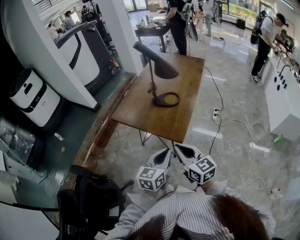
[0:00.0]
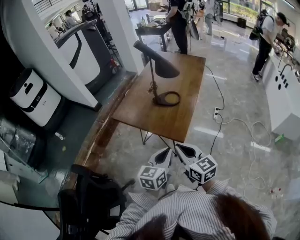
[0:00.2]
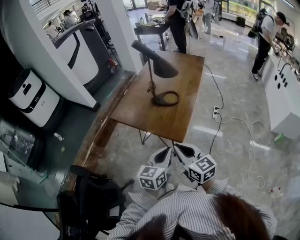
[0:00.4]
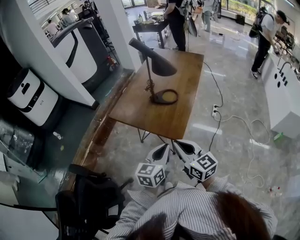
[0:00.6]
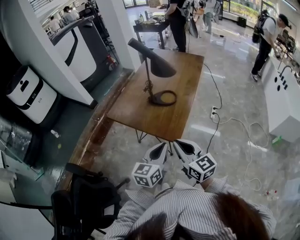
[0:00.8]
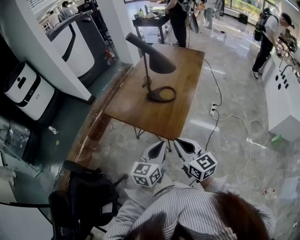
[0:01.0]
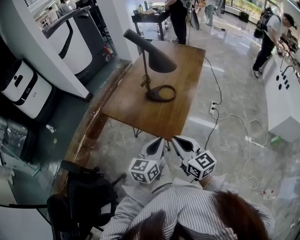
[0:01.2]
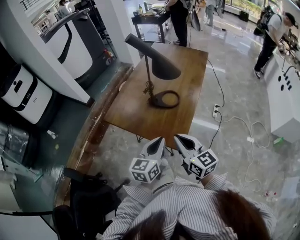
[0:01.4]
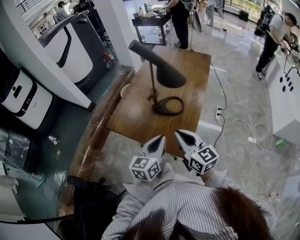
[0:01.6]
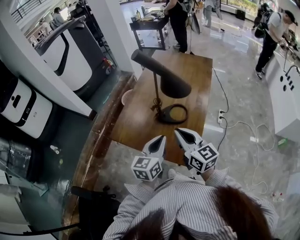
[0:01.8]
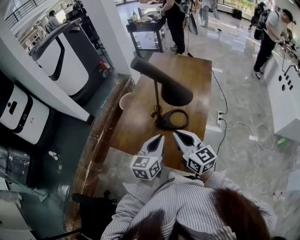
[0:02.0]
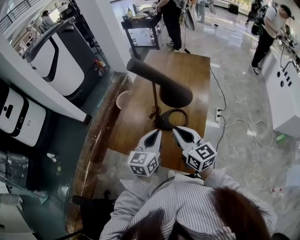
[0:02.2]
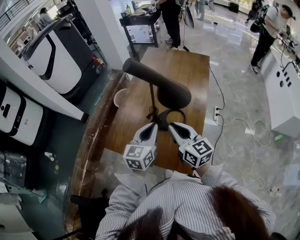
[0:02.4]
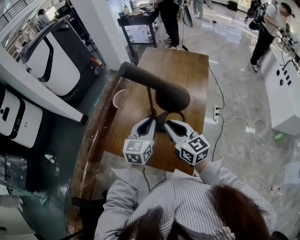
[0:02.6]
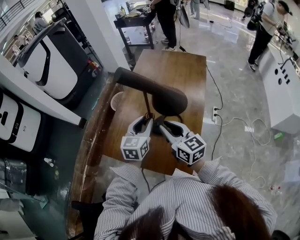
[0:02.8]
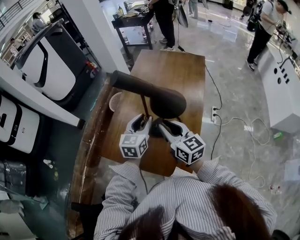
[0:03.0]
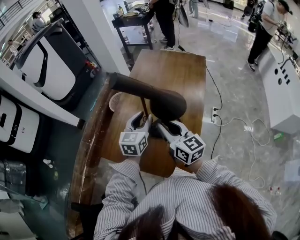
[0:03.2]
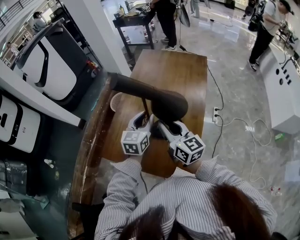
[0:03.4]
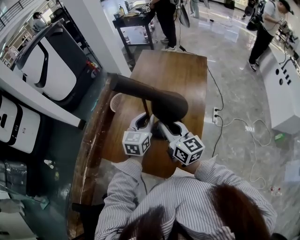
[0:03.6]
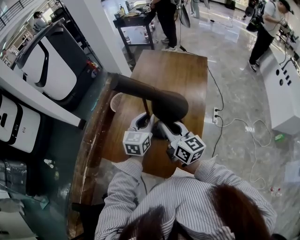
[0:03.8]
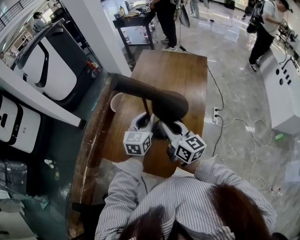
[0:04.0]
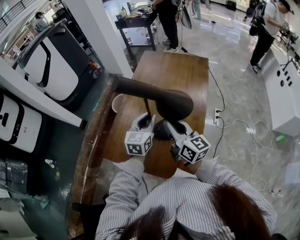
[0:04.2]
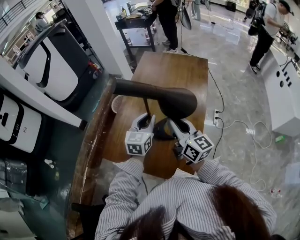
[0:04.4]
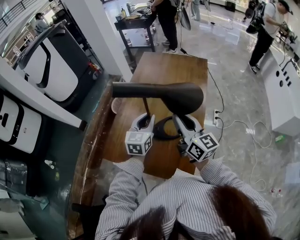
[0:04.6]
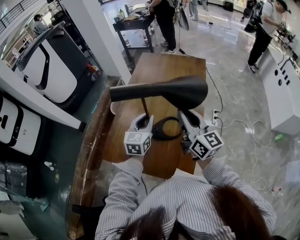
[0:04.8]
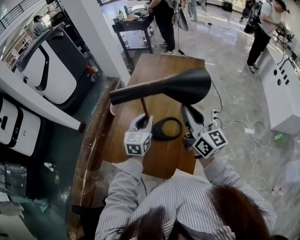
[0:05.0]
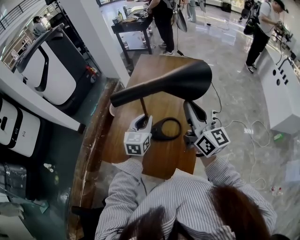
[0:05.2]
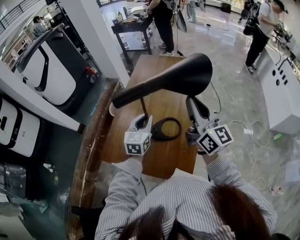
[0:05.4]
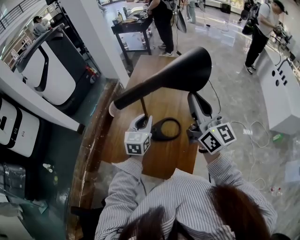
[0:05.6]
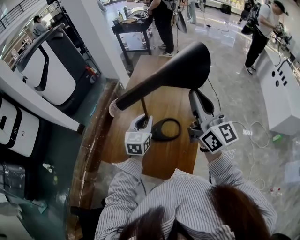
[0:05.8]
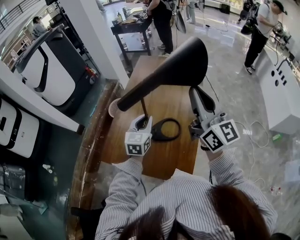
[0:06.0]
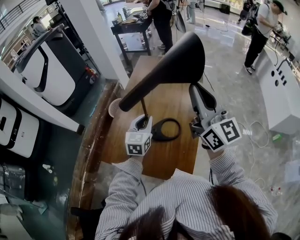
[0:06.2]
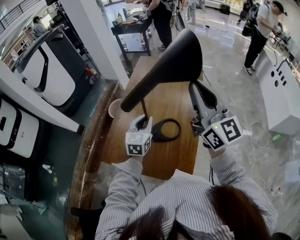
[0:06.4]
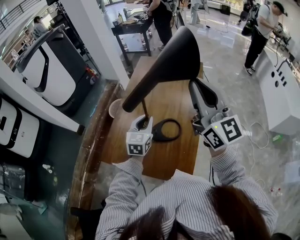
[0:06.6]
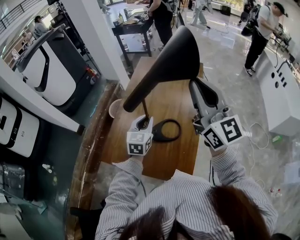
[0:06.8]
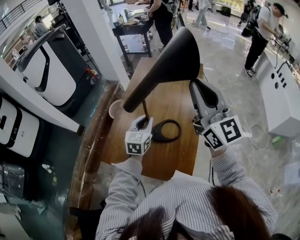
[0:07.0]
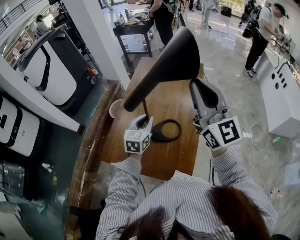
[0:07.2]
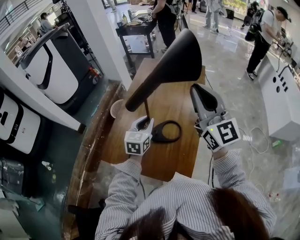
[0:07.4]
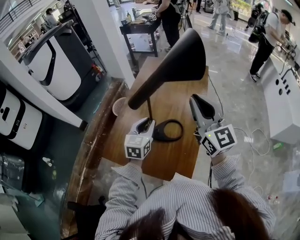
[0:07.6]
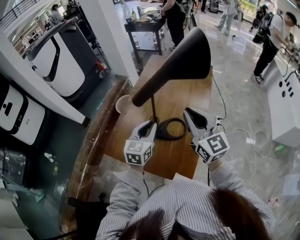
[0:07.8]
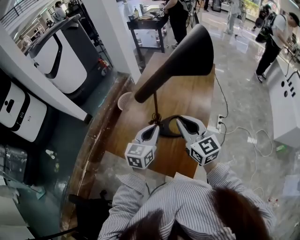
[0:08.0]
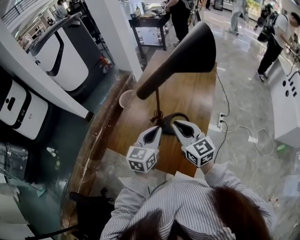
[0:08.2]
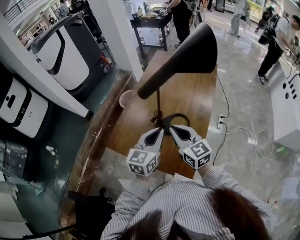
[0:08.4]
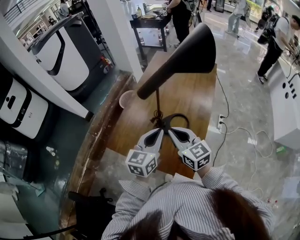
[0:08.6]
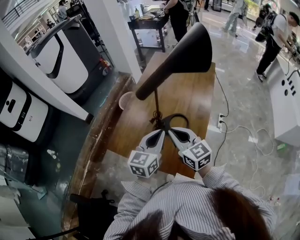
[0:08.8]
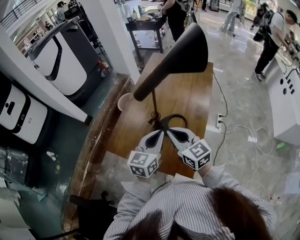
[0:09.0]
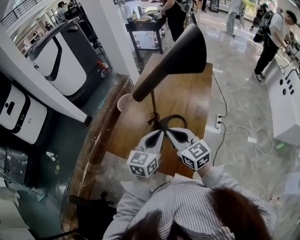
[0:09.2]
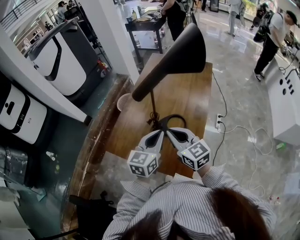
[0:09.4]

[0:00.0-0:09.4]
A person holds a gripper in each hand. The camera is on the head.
0:00.0 to 0:01.6: Both grippers move forward, approximately 20 cm.
0:01.6 to 0:03.2: Both grippers move forward, approximately 25 cm. The left gripper opens.
0:03.2 to 0:04.8: The right gripper moves to the right and upward, roughly 10 cm.
0:04.8 to 0:06.2: The right gripper heads upward, covering about 15 cm.
0:06.2 to 0:07.8: The left gripper travels backward by roughly 5 cm, while the right gripper goes about 10 cm downward, and swivels about 20 degrees.
0:07.8 to 0:09.4: The left gripper shifts about 5 cm backward. Meanwhile the right gripper goes roughly 15 cm downward, to the left and backward.

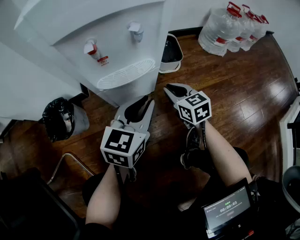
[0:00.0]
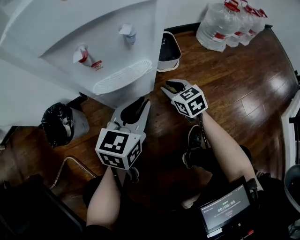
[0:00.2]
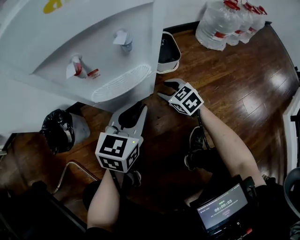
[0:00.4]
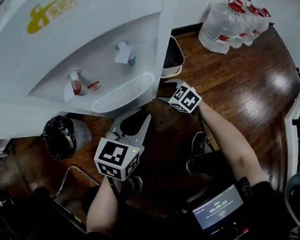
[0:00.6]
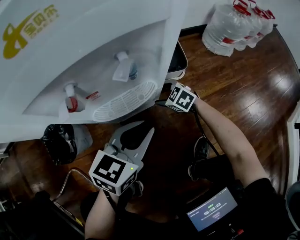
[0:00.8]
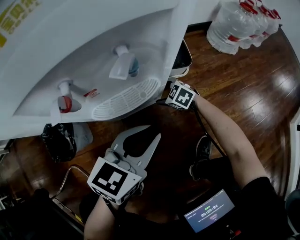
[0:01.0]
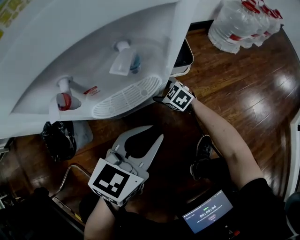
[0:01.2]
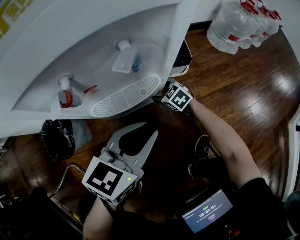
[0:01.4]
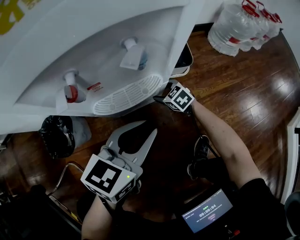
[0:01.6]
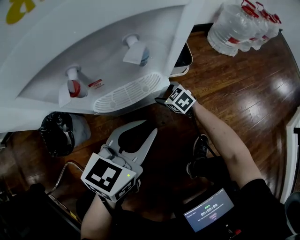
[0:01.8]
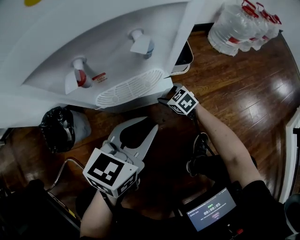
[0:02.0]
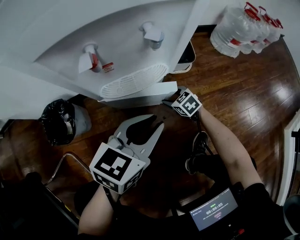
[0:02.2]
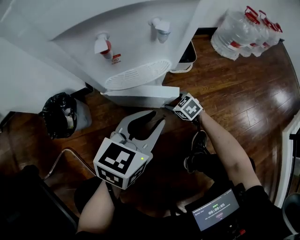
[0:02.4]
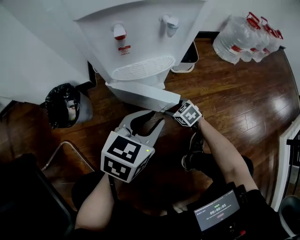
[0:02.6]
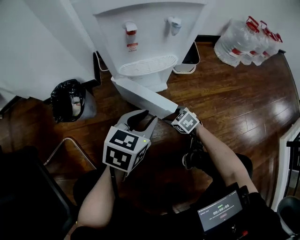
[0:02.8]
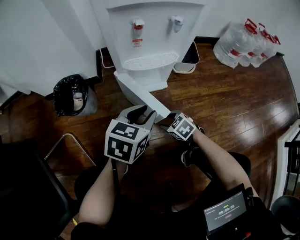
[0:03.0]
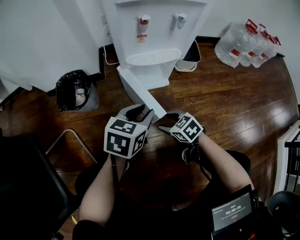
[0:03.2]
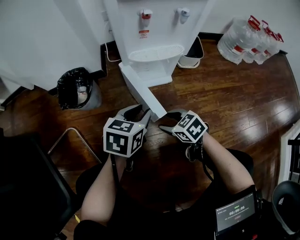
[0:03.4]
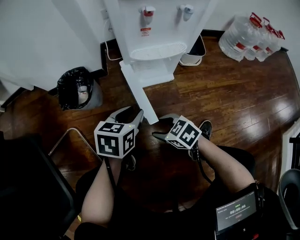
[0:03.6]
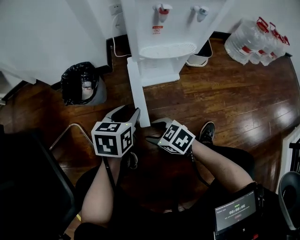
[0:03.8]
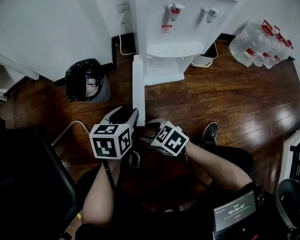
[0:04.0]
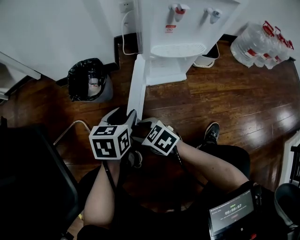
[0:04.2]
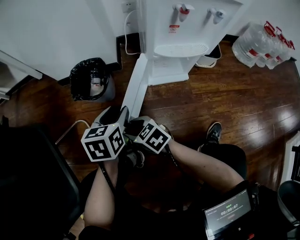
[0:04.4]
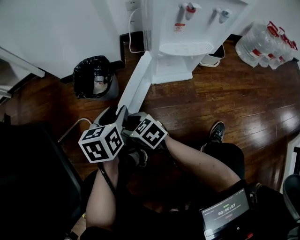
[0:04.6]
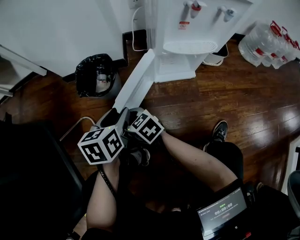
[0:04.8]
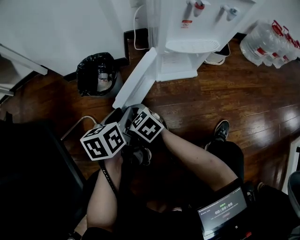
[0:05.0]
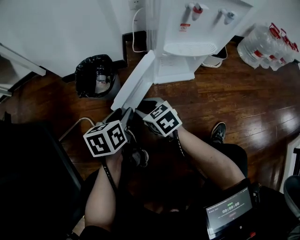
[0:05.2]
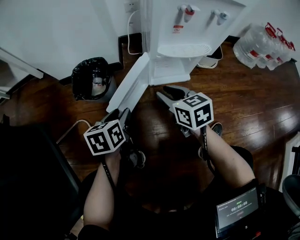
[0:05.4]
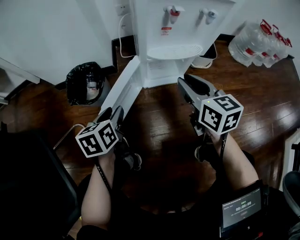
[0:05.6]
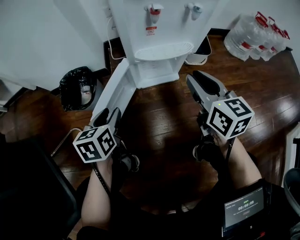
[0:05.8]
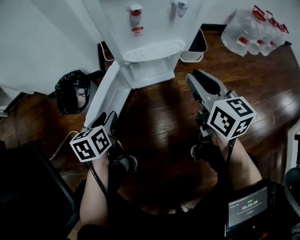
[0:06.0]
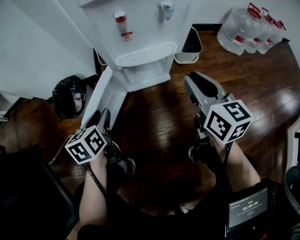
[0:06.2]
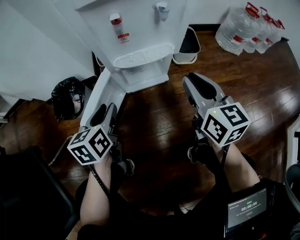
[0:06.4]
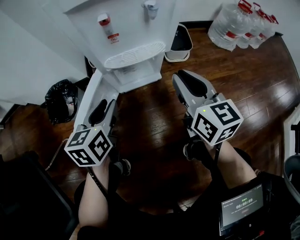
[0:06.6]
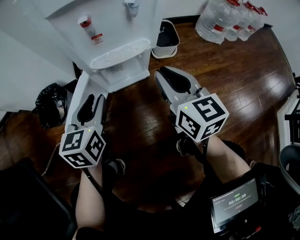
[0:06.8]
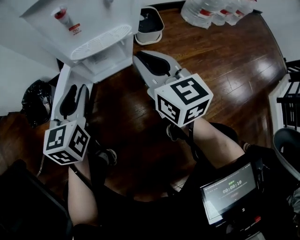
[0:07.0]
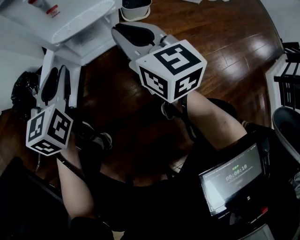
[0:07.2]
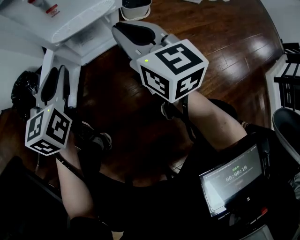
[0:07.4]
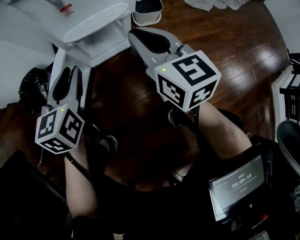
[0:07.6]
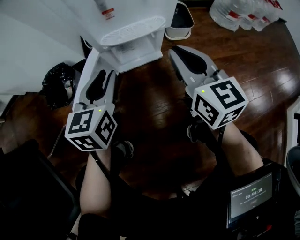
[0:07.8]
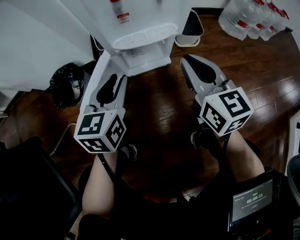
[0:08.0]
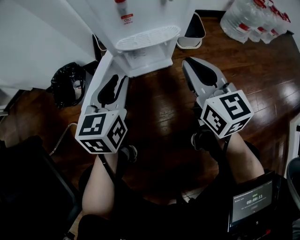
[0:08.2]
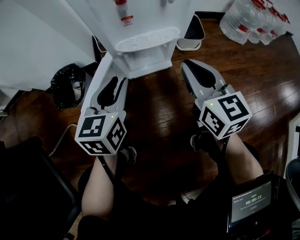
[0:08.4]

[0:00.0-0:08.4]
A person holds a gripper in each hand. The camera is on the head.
0:00.0 to 0:01.4: The right gripper shifts approximately 20 cm downward and forward, swivels approximately 30 degrees, and opens its fingers.
0:01.4 to 0:02.8: The right gripper goes about 20 cm backward. The left gripper travels backward and to the left by some 10 cm.
0:02.8 to 0:04.2: The right gripper moves to the left and upward, approximately 30 cm, and swivels some 20 degrees. Meanwhile the left gripper is displaced to the left by about 20 cm, and swivels some 30 degrees.
0:04.2 to 0:05.6: The right gripper shifts about 30 cm to the right and upward, and turns by about 50 degrees.
0:05.6 to 0:07.0: The left gripper is displaced to the right and upward by about 20 cm, and changes its angle by approximately 30 degrees. The right gripper goes approximately 10 cm to the right.
0:07.0 to 0:08.4: Both grippers stay about where they are.

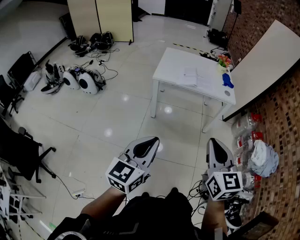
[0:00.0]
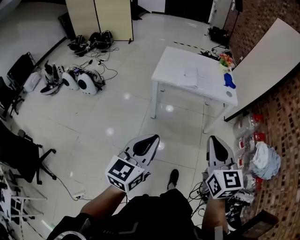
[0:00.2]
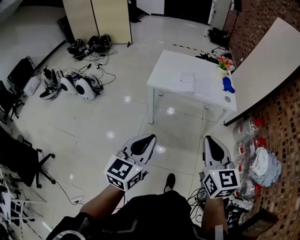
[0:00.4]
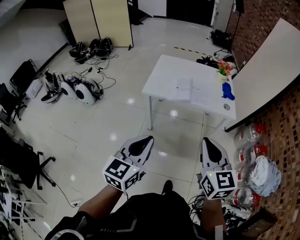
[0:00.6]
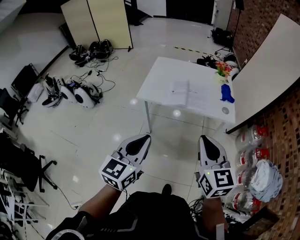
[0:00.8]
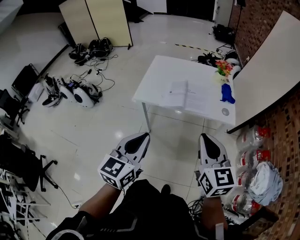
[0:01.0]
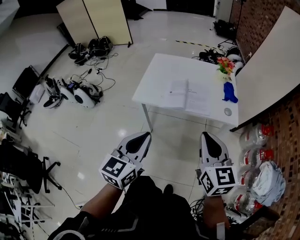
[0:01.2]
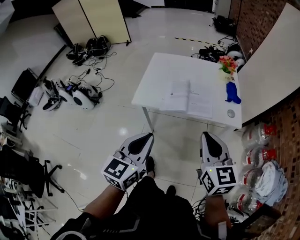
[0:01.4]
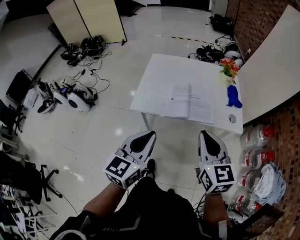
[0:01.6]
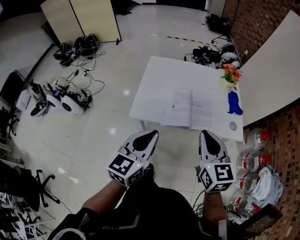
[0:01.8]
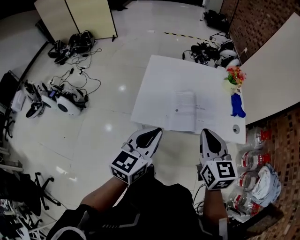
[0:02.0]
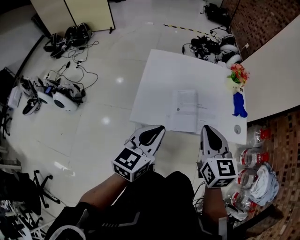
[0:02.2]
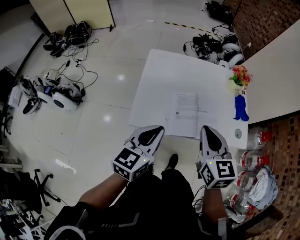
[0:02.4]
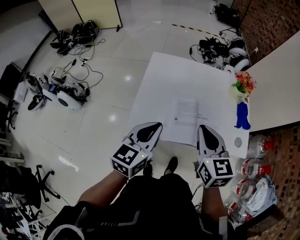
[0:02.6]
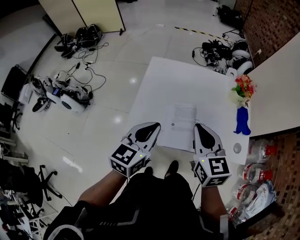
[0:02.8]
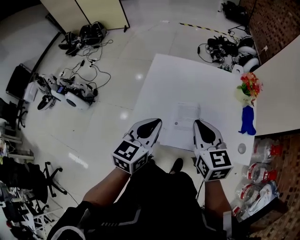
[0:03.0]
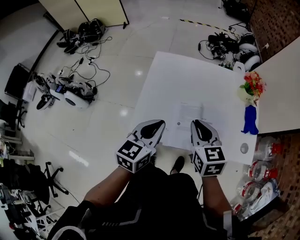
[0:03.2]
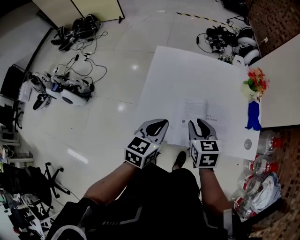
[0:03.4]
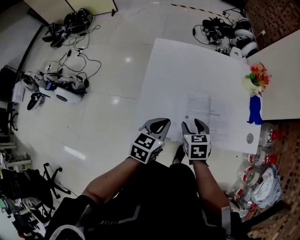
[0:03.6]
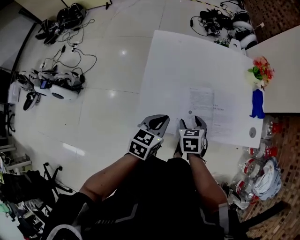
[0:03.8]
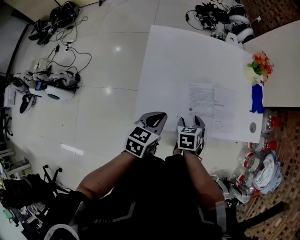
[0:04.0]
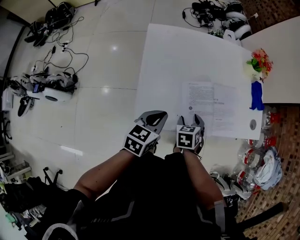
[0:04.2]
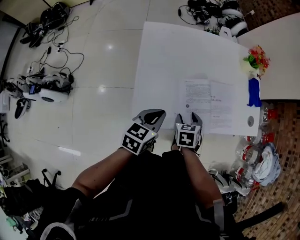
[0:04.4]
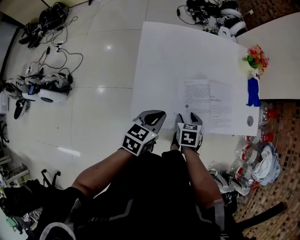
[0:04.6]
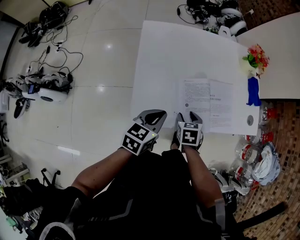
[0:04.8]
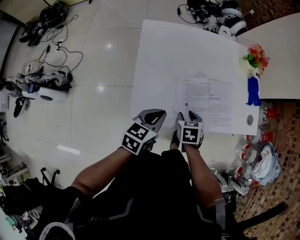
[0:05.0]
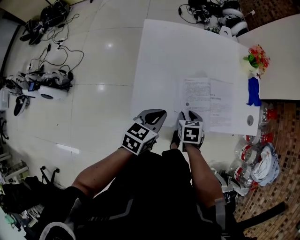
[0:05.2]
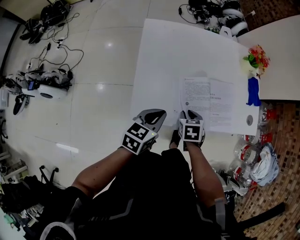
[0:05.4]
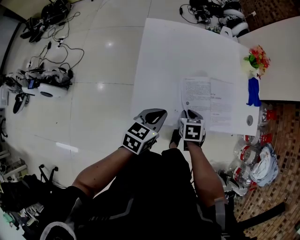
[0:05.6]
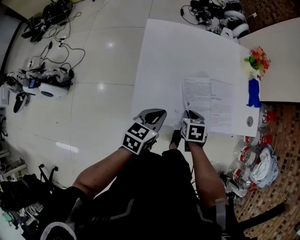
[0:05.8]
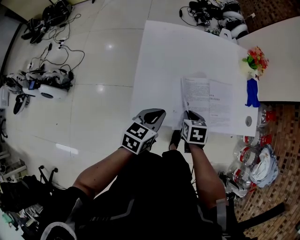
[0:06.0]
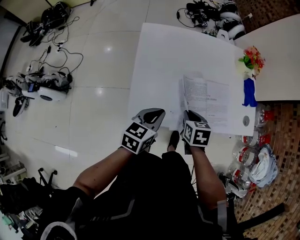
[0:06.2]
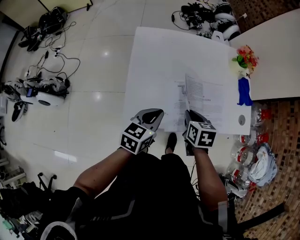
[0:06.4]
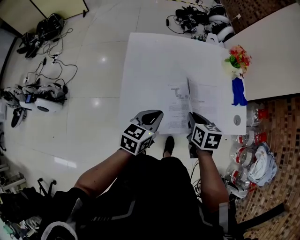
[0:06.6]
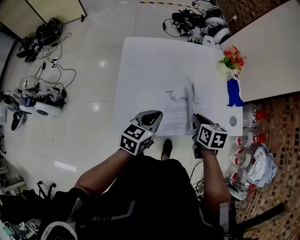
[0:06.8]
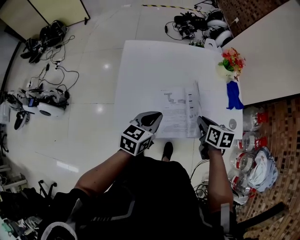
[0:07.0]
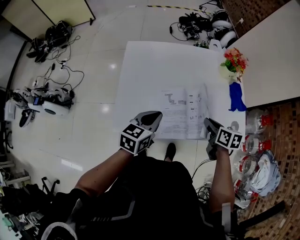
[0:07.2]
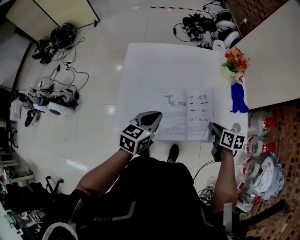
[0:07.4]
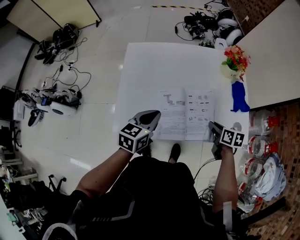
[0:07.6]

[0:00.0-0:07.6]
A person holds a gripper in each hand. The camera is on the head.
0:00.0 to 0:01.6: Both grippers are carried forward, approximately 40 cm.
0:01.6 to 0:03.0: Both grippers travel together forward, about 30 cm.
0:03.0 to 0:04.6: The left gripper is displaced downward by about 20 cm, and turns by roughly 30 degrees; the right gripper travels downward by approximately 30 cm, tilts its fingers about 40 degrees downward, and opens.
0:04.6 to 0:06.0: The right gripper closes.
0:06.0 to 0:07.6: The right gripper travels to the right by roughly 25 cm, and swivels approximately 30 degrees, while the left gripper heads to the right and forward, covering some 15 cm.
